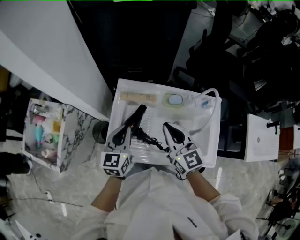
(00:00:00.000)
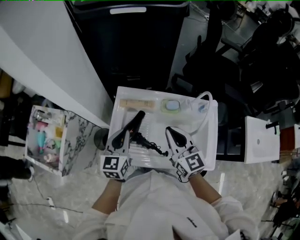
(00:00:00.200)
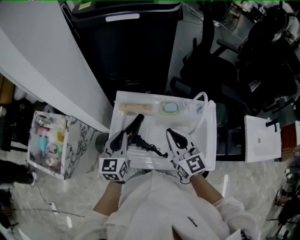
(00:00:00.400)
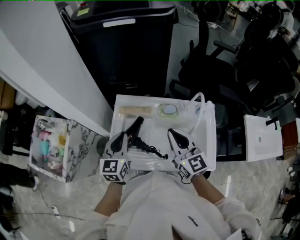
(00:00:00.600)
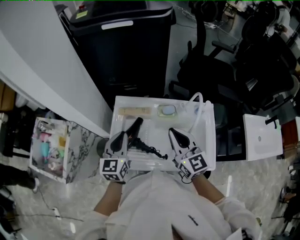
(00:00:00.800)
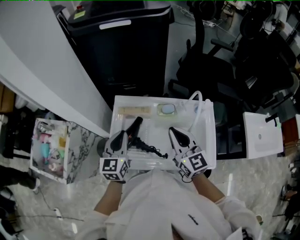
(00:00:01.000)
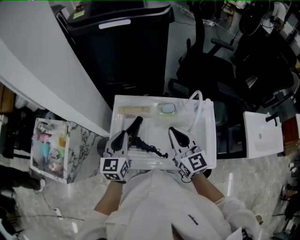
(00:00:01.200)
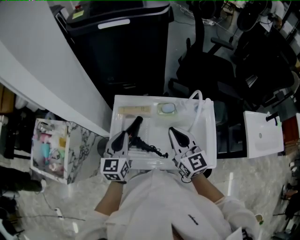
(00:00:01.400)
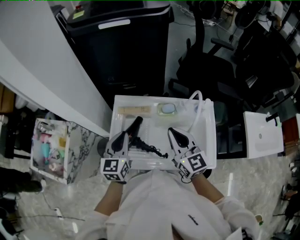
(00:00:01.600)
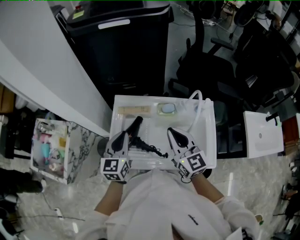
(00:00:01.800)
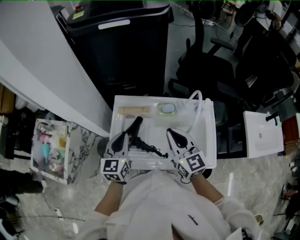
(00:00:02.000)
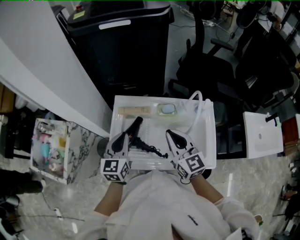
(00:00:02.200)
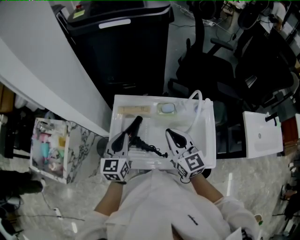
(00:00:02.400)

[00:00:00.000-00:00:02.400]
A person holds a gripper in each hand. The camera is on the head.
00:00:00.000 to 00:00:01.200: The right gripper heads to the right, covering roughly 5 cm, while the left gripper moves some 5 cm.
00:00:01.200 to 00:00:02.400: The grippers stay close to where they were, moving slightly.

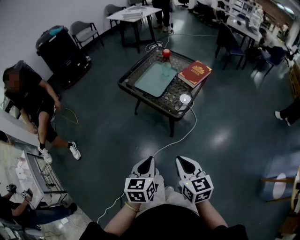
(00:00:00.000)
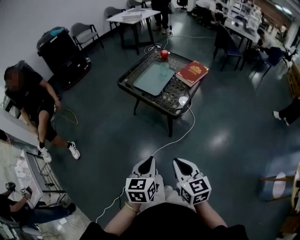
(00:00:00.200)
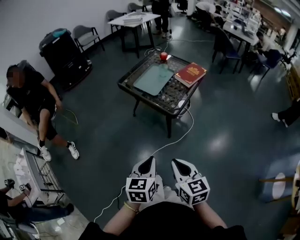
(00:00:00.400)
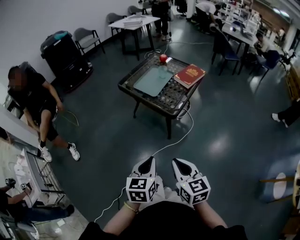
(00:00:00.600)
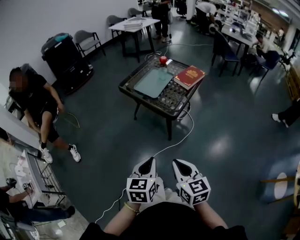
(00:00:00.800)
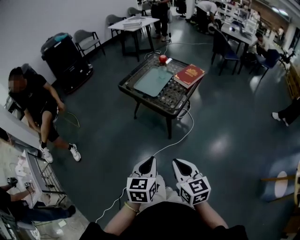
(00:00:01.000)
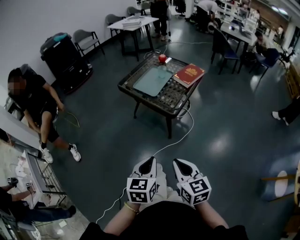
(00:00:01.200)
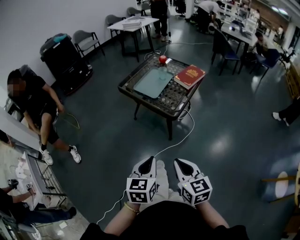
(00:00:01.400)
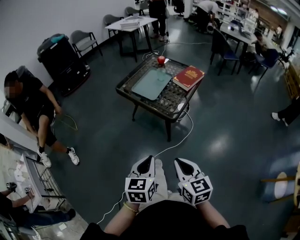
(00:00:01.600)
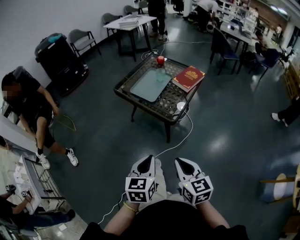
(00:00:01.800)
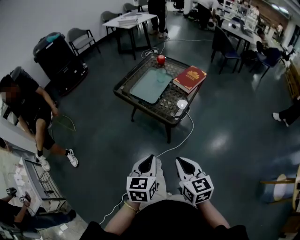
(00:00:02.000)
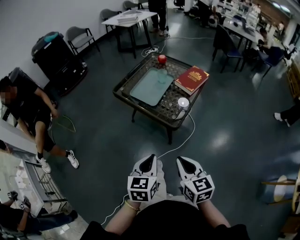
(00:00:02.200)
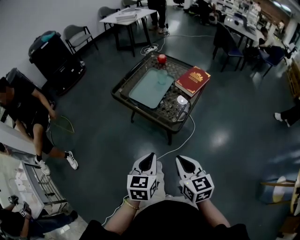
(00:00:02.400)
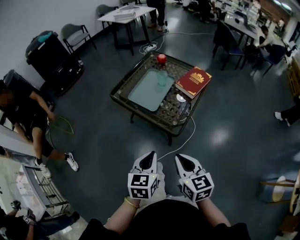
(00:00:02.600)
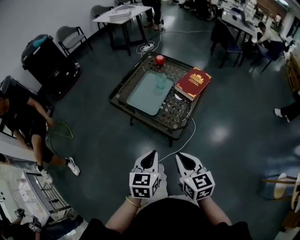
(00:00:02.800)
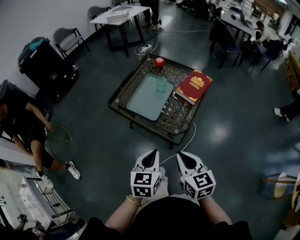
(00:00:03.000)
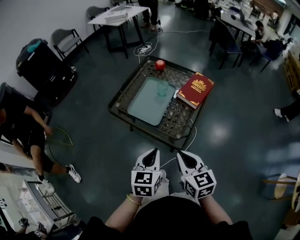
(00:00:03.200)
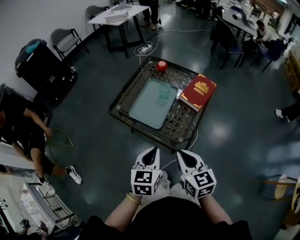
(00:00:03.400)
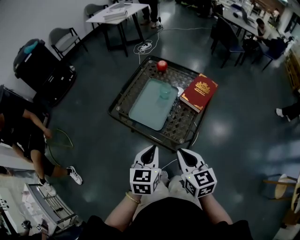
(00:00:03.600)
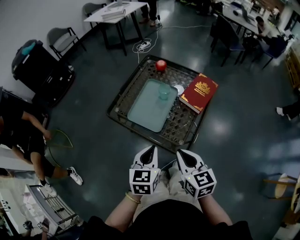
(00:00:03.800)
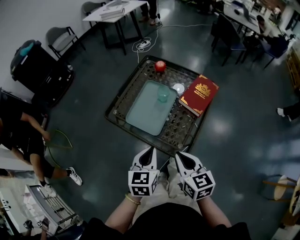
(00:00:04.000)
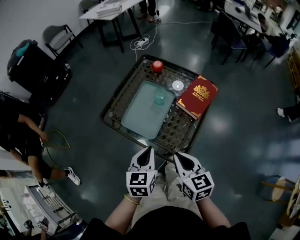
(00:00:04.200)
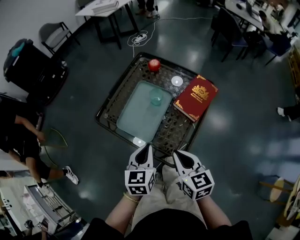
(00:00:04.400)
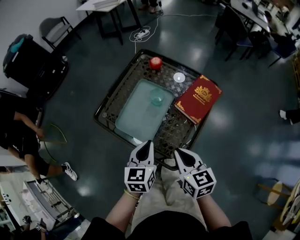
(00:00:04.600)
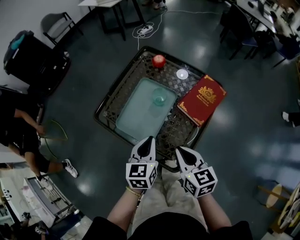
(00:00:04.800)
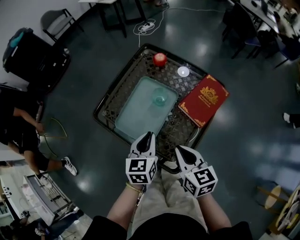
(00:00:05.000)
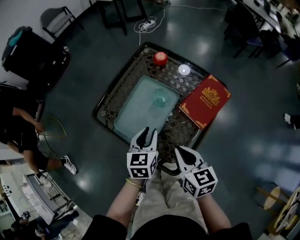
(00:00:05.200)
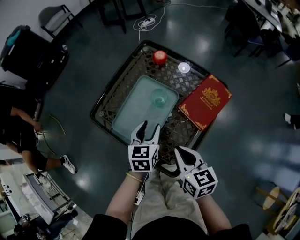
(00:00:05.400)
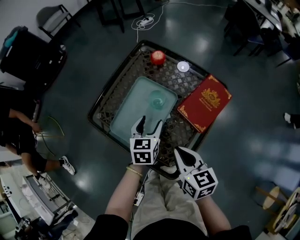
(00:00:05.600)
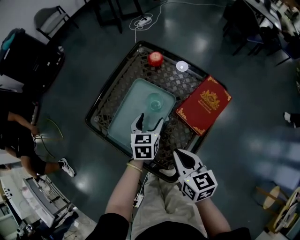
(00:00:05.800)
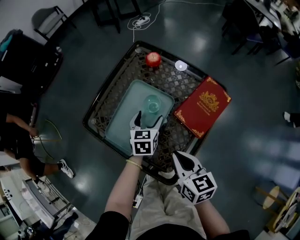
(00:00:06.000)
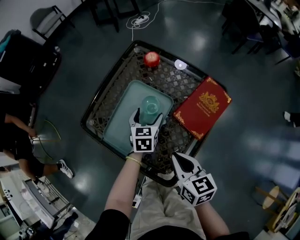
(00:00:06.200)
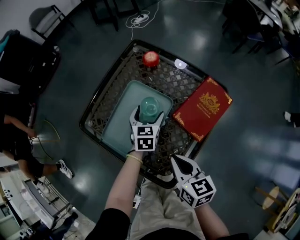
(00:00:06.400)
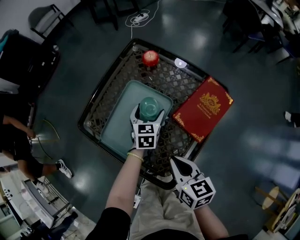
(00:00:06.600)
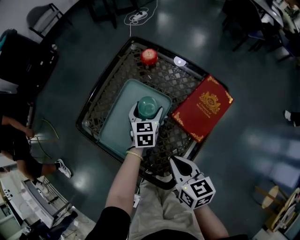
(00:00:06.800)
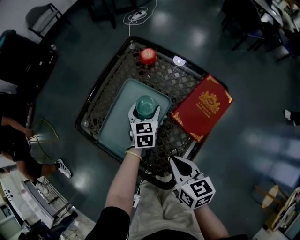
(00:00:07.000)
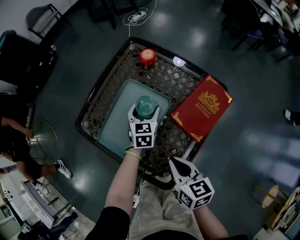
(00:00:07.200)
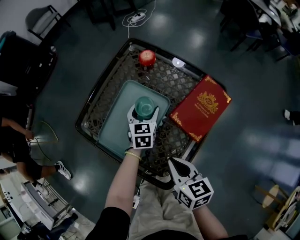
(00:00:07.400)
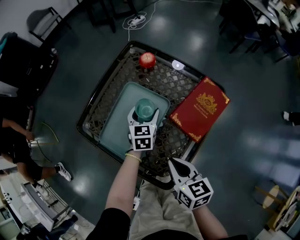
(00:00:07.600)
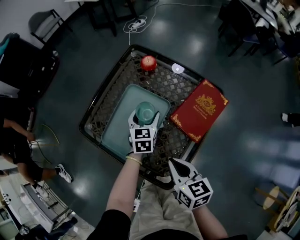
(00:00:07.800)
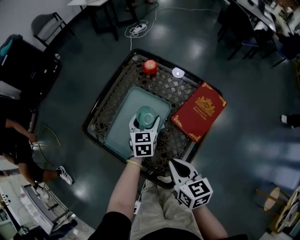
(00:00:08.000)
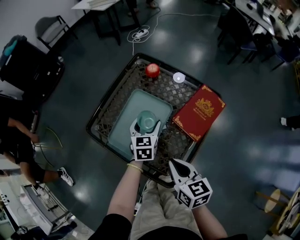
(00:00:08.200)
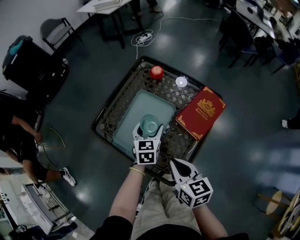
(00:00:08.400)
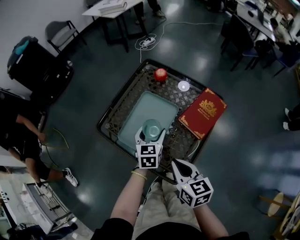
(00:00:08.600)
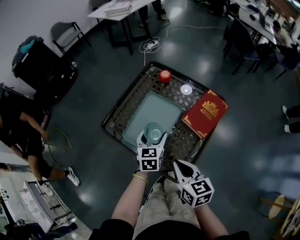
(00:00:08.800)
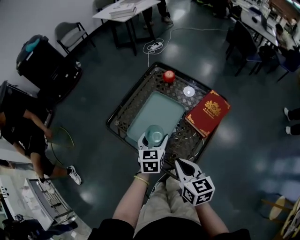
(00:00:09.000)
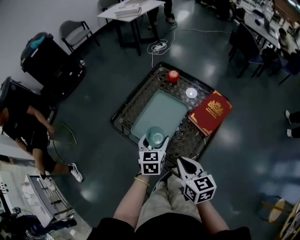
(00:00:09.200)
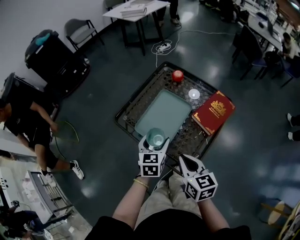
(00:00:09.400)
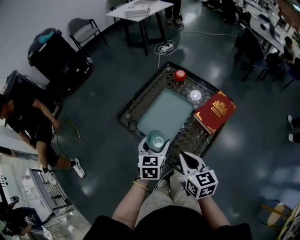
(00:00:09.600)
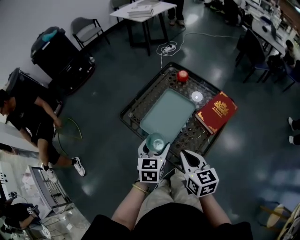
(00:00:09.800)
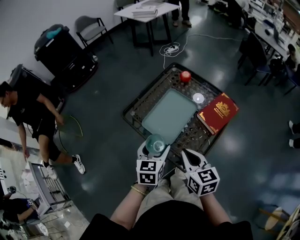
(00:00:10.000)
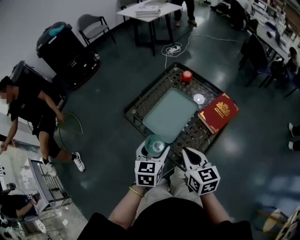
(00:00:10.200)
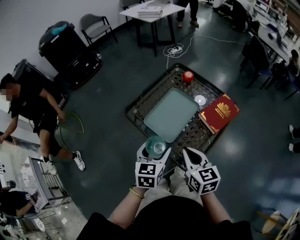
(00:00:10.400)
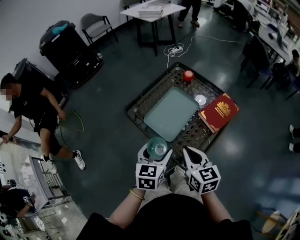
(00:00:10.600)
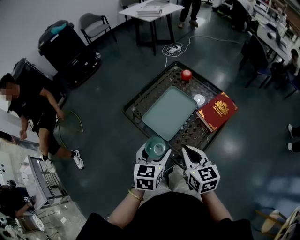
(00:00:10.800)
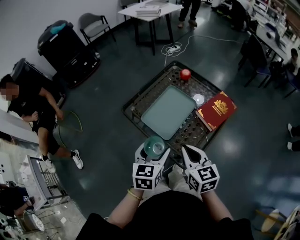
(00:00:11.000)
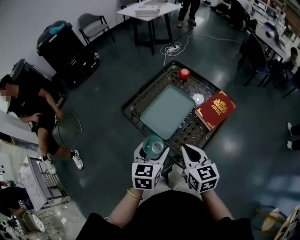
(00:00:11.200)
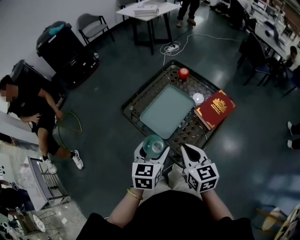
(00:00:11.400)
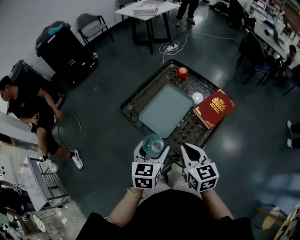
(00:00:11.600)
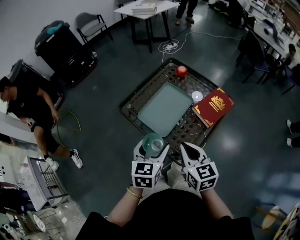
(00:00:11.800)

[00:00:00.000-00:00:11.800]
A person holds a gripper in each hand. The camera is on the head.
00:00:00.000 to 00:00:01.400: Both grippers travel together backward, approximately 5 cm.
00:00:01.400 to 00:00:03.000: Both grippers travel together forward, about 30 cm.
00:00:03.000 to 00:00:04.400: The two grippers go about 20 cm forward.
00:00:04.400 to 00:00:06.000: The left gripper shifts approximately 25 cm forward and downward, and opens; the right gripper travels forward and downward by some 15 cm.
00:00:06.000 to 00:00:07.400: The left gripper is displaced forward by roughly 5 cm.
00:00:07.400 to 00:00:08.800: The left gripper is displaced backward, upward and to the left by roughly 20 cm. The right gripper travels upward, to the left and backward by roughly 10 cm.
00:00:08.800 to 00:00:10.400: The right gripper is displaced upward by roughly 5 cm, while the left gripper goes about 20 cm backward, upward and to the left.
00:00:10.400 to 00:00:11.800: The grippers move only a little.

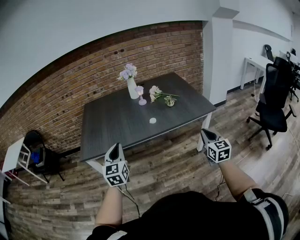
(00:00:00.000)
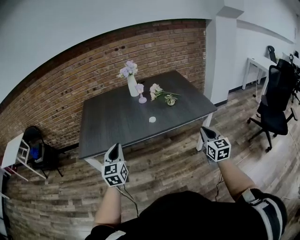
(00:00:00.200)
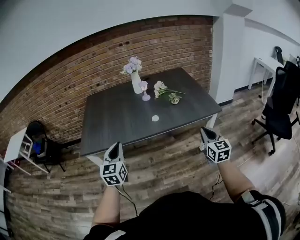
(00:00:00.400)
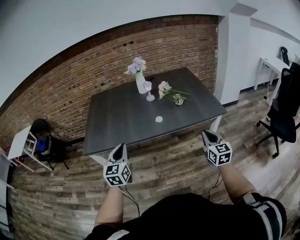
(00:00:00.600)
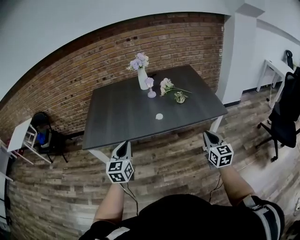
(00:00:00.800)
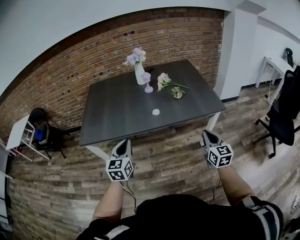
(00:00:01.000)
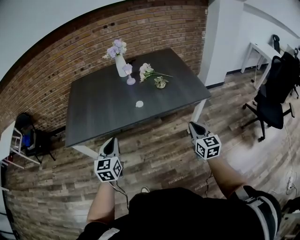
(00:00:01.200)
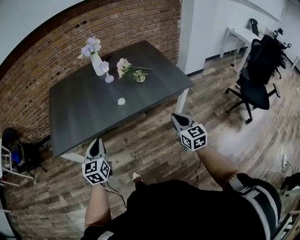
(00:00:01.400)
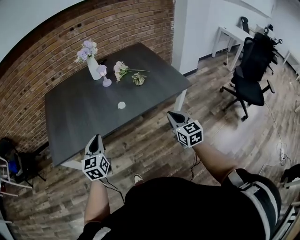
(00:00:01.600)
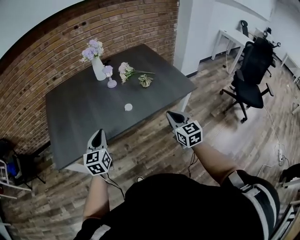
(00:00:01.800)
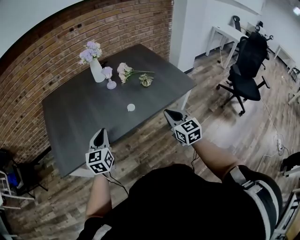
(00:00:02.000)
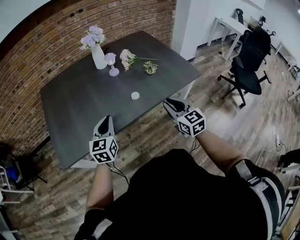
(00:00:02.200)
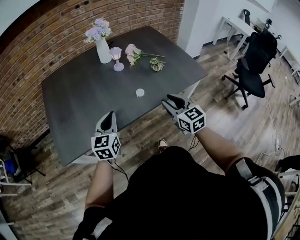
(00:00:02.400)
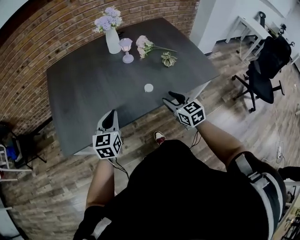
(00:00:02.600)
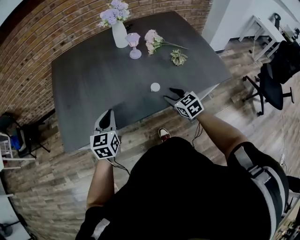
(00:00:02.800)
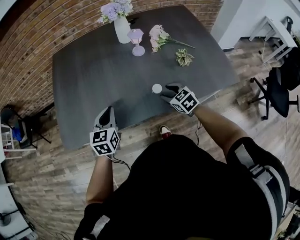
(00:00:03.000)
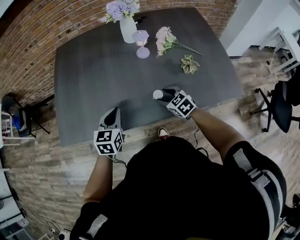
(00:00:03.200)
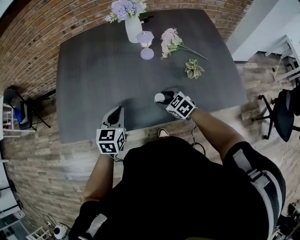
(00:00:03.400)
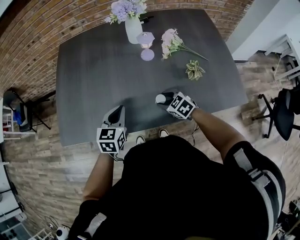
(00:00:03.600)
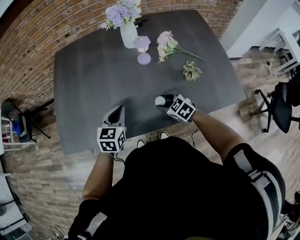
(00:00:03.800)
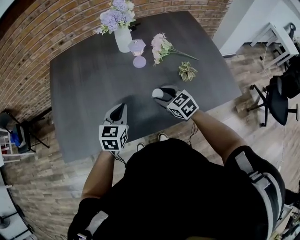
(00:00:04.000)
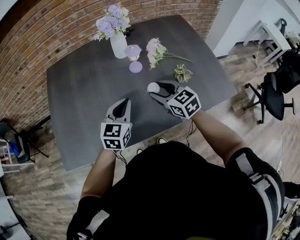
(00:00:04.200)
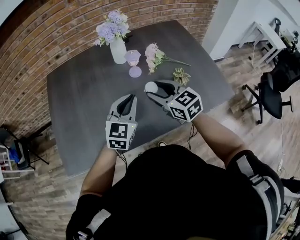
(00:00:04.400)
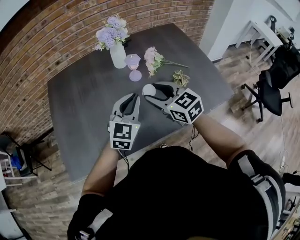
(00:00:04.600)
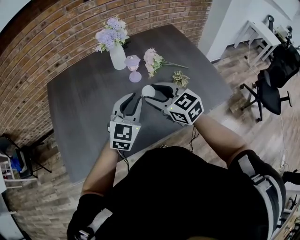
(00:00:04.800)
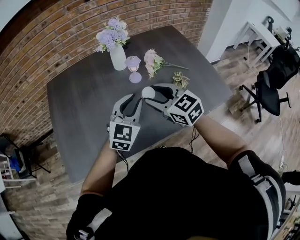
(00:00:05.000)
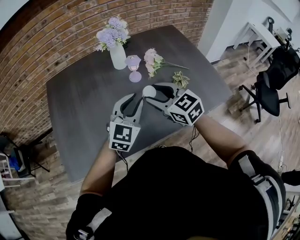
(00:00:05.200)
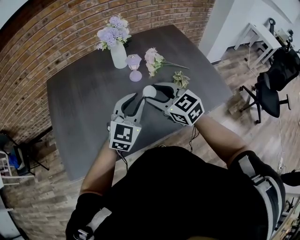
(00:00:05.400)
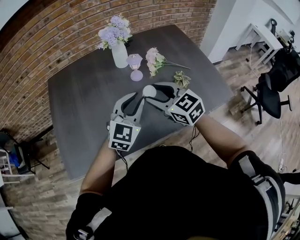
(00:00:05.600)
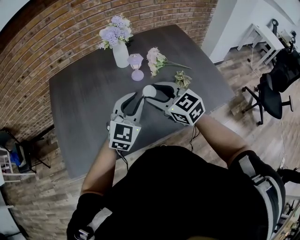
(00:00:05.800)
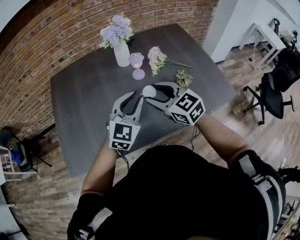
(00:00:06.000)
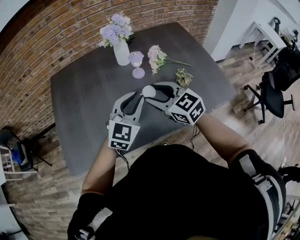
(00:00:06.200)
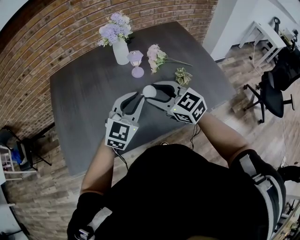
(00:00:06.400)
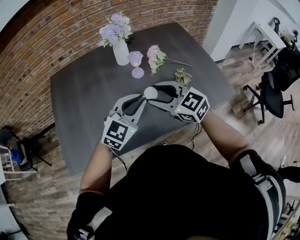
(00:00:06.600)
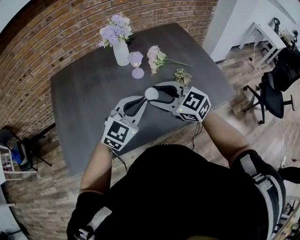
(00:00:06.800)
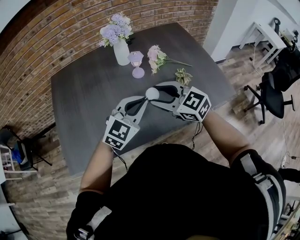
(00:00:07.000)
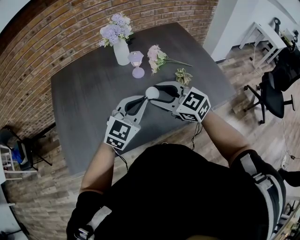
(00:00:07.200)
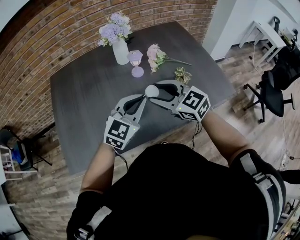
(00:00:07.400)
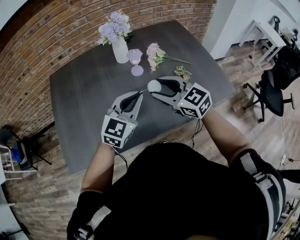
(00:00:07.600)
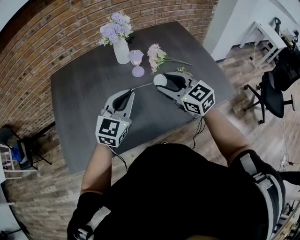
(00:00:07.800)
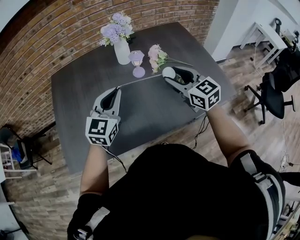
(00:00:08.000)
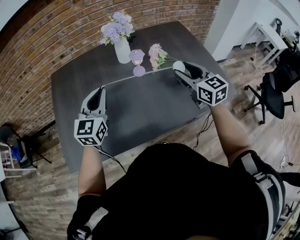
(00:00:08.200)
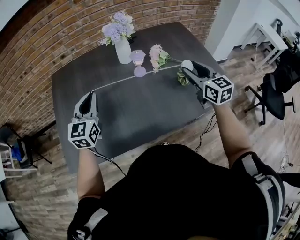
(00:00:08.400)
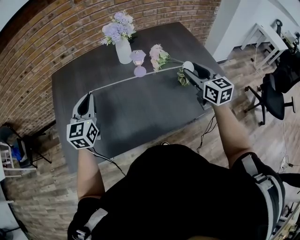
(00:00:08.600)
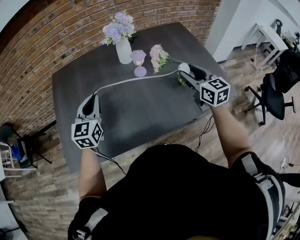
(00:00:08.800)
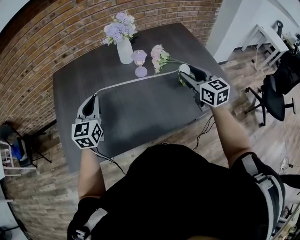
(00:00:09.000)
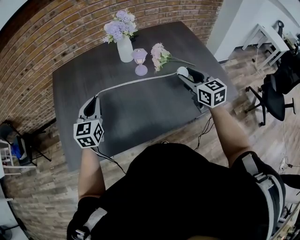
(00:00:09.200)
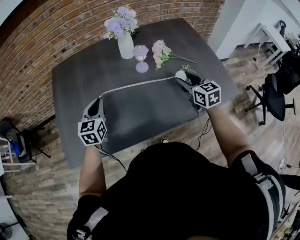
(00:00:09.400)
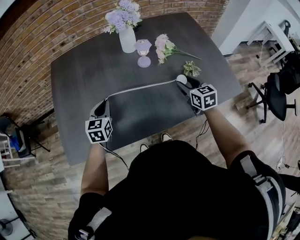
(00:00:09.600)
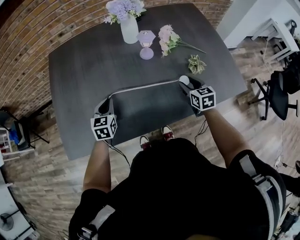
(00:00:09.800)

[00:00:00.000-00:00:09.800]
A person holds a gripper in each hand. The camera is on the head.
00:00:00.000 to 00:00:01.400: The right gripper shifts some 5 cm forward. The left gripper heads to the right, forward and downward, covering approximately 10 cm.
00:00:01.400 to 00:00:02.800: The left gripper goes about 20 cm forward and to the left. The right gripper shifts about 30 cm forward, to the left and downward, turns by some 30 degrees, and opens.
00:00:02.800 to 00:00:04.200: The right gripper moves forward and upward, approximately 15 cm, while the left gripper heads to the right and forward, covering some 15 cm.
00:00:04.200 to 00:00:05.600: The two grippers go approximately 10 cm upward. The left gripper rotates some 20 degrees.
00:00:05.600 to 00:00:07.000: The grippers make only small movements.
00:00:07.000 to 00:00:08.400: The left gripper moves to the left, approximately 20 cm, and swivels some 40 degrees; the right gripper heads to the right and forward, covering some 20 cm, and changes its angle by about 30 degrees.
00:00:08.400 to 00:00:09.800: Both grippers move downward, roughly 20 cm. The right gripper turns by some 20 degrees; the left gripper changes its angle by approximately 30 degrees.
